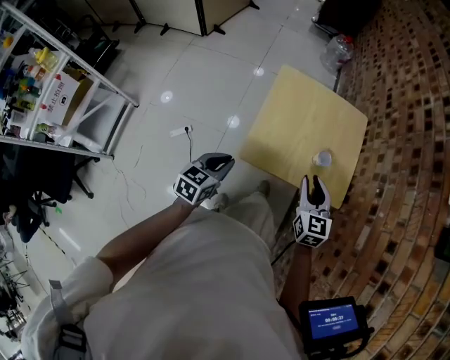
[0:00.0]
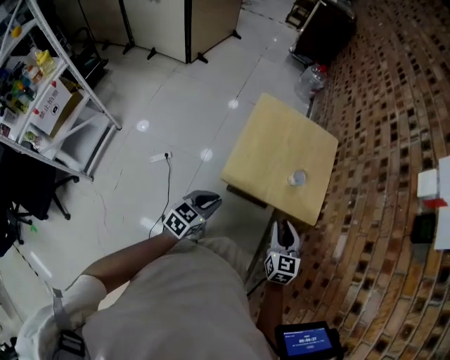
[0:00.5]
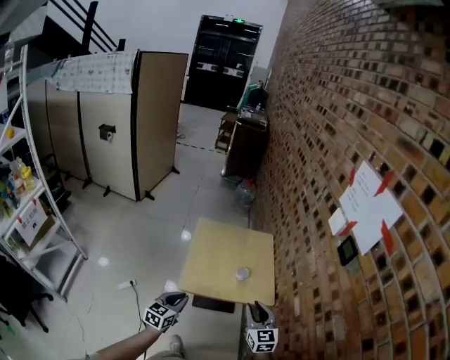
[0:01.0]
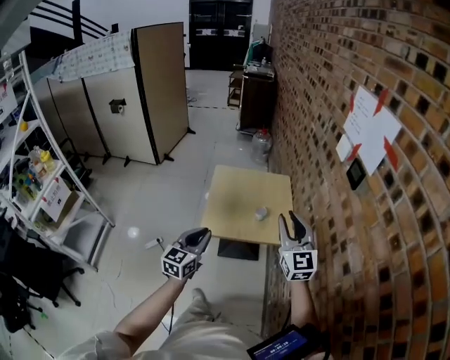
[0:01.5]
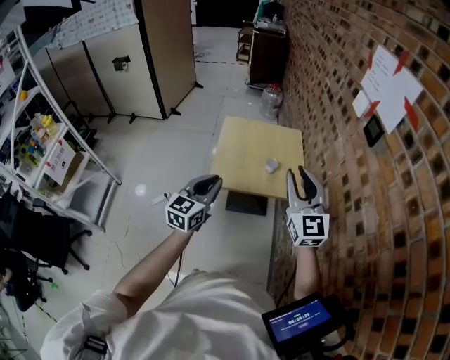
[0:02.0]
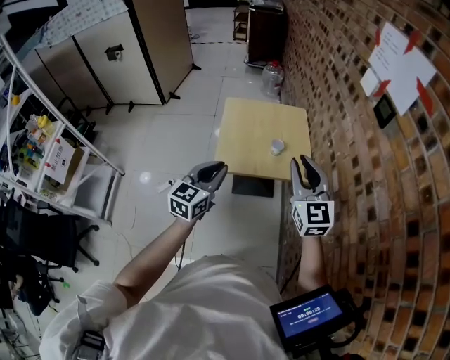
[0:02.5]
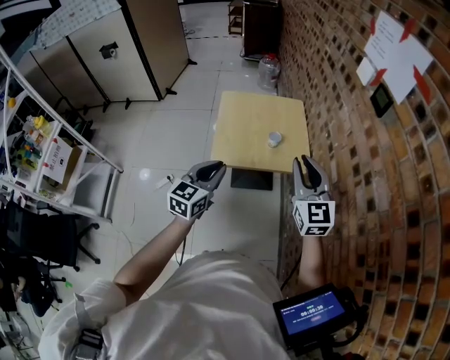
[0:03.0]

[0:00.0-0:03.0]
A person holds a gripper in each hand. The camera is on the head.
0:00.0 to 0:01.5: Both grippers move upward, backward and to the right, some 30 cm. The right gripper changes its angle by some 30 degrees; the left gripper changes its angle by about 30 degrees.
0:01.5 to 0:03.0: The right gripper shifts by approximately 5 cm.

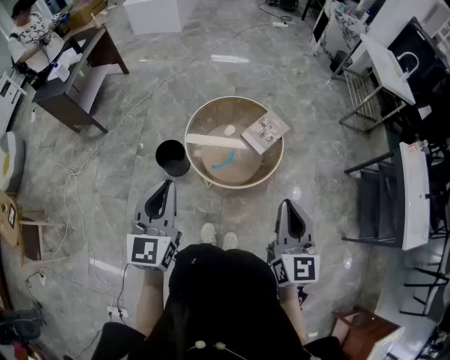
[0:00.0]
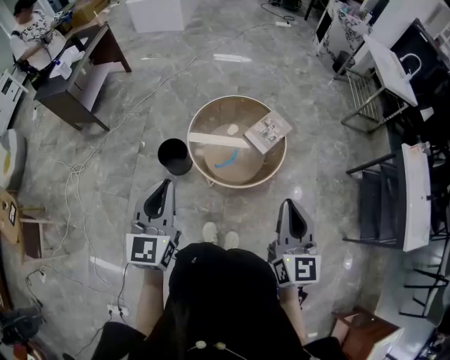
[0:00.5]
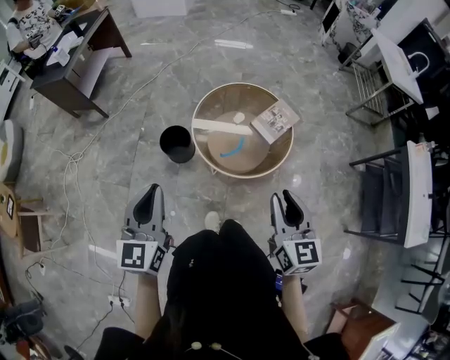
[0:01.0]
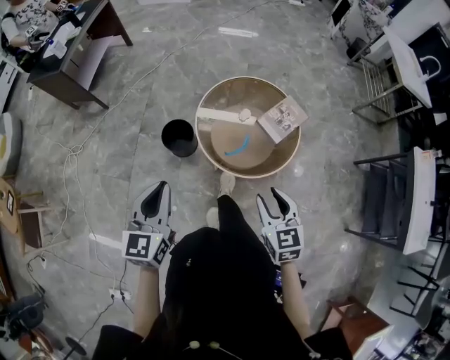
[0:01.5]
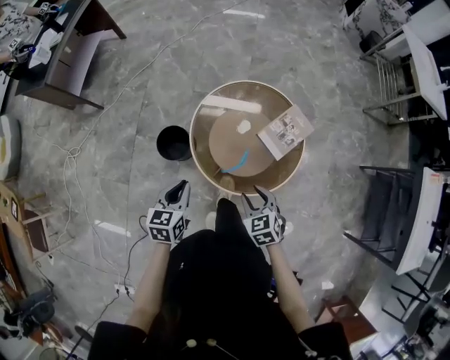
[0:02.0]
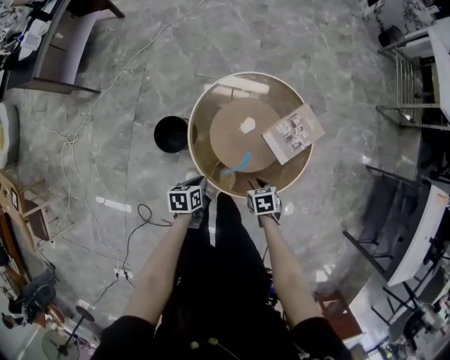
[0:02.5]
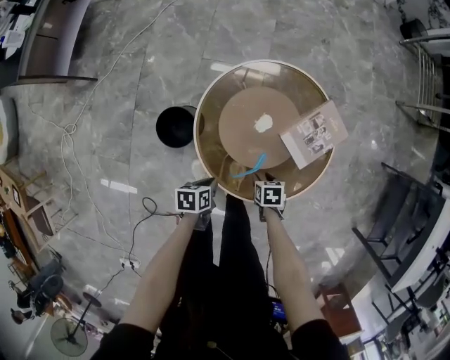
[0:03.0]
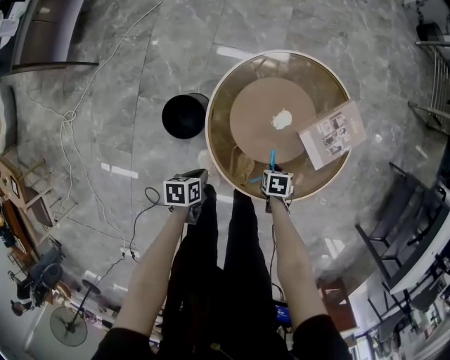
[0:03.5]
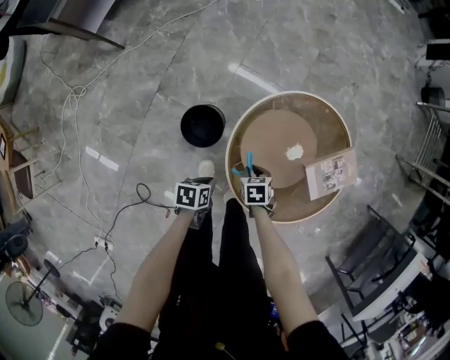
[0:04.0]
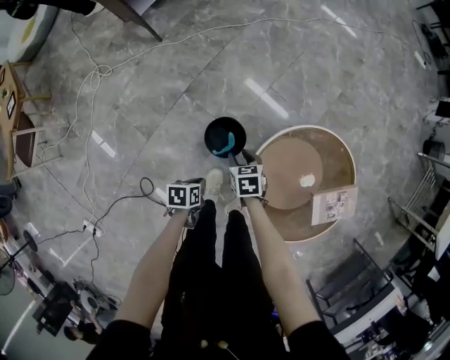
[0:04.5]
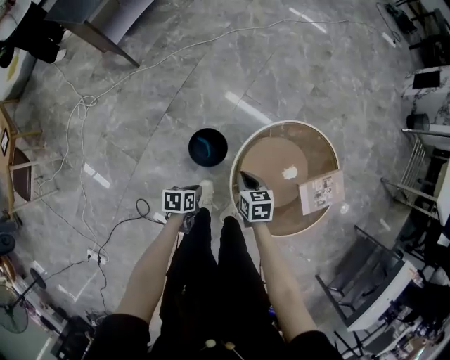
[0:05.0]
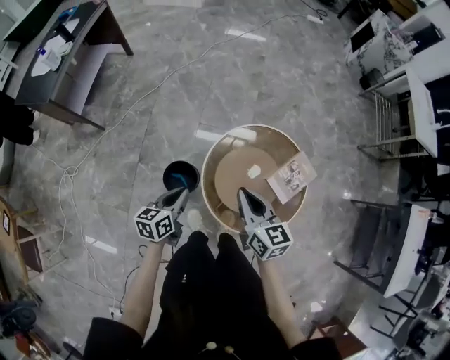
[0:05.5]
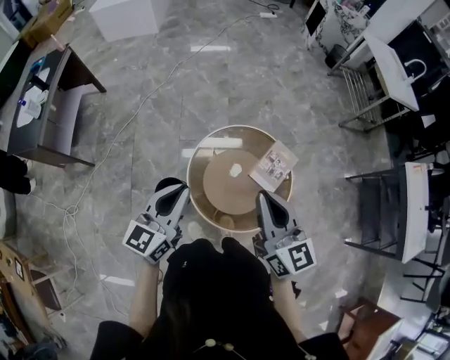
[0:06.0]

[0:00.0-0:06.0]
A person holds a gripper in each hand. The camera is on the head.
0:00.0 to 0:02.0: The two grippers go some 35 cm downward and forward. The right gripper tips its fingers downward by about 40 degrees, and opens up, while the left gripper tilts its fingers some 30 degrees downward.
0:02.0 to 0:04.0: Both grippers move downward, approximately 25 cm. The right gripper turns by roughly 30 degrees, and closes up. The left gripper changes its angle by some 50 degrees.
0:04.0 to 0:06.0: The grippers both shift upward by approximately 50 cm. The right gripper points its fingers approximately 70 degrees further upward, while the left gripper points its fingers about 50 degrees further upward.

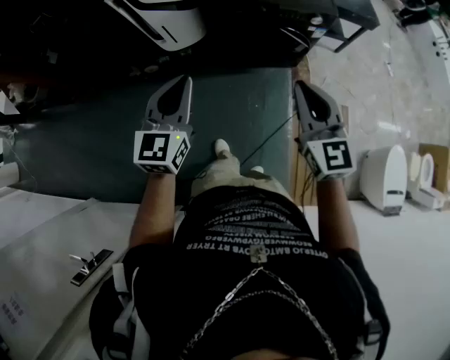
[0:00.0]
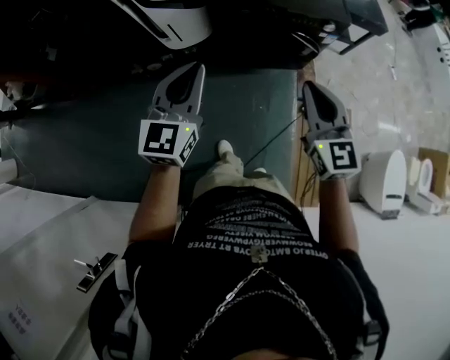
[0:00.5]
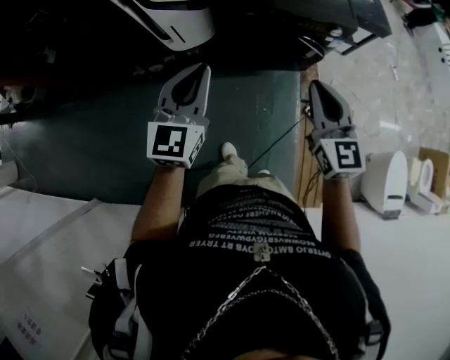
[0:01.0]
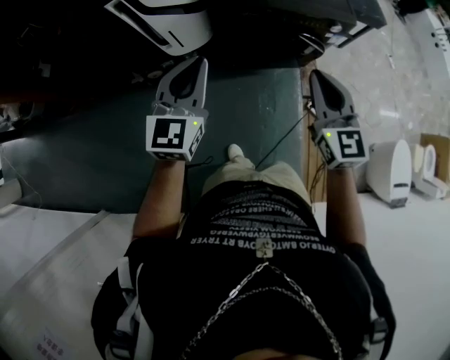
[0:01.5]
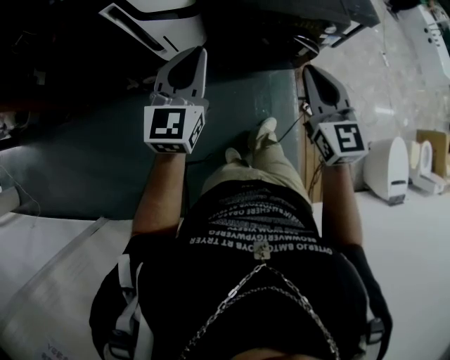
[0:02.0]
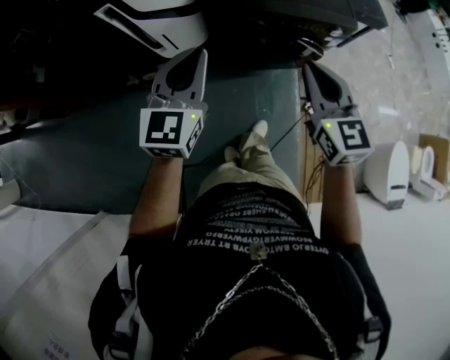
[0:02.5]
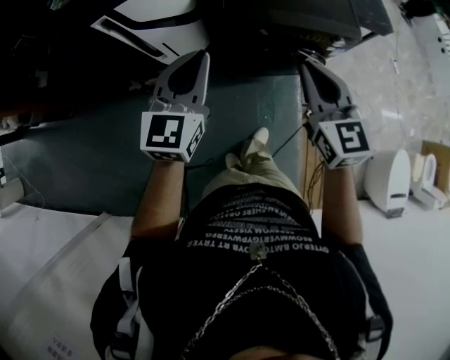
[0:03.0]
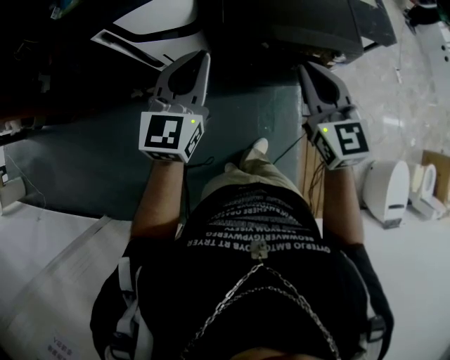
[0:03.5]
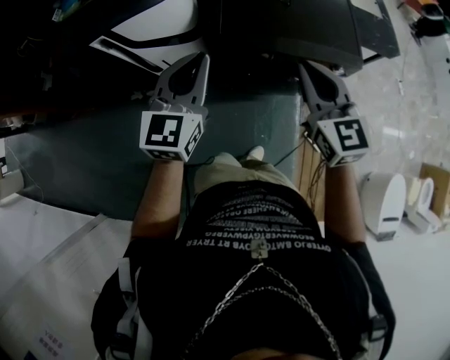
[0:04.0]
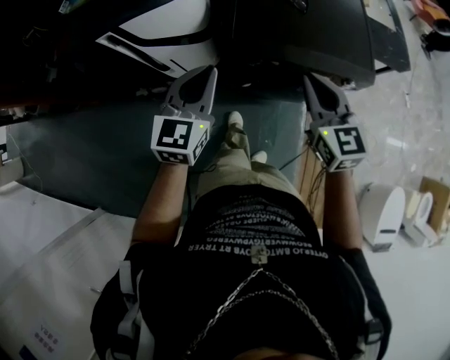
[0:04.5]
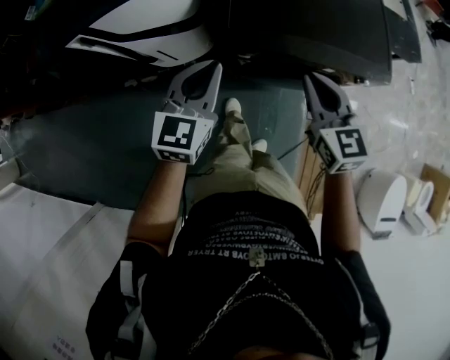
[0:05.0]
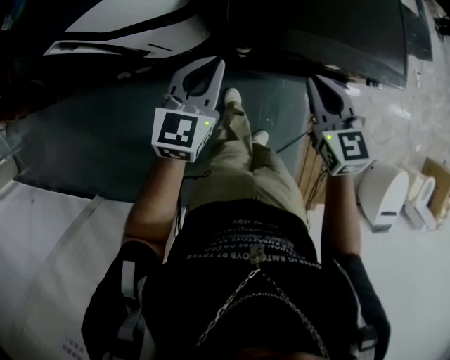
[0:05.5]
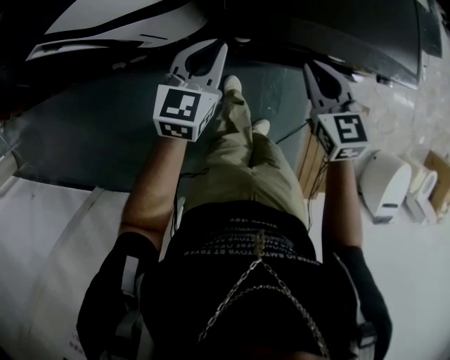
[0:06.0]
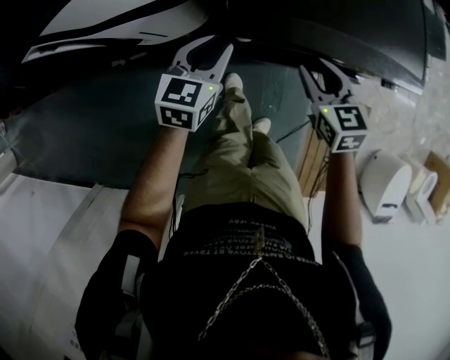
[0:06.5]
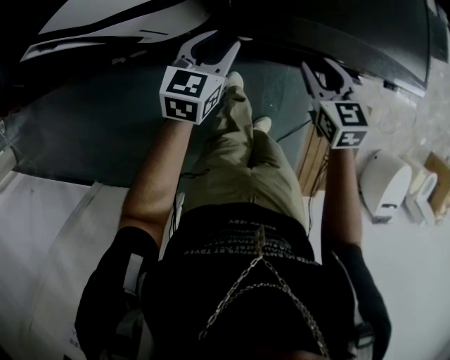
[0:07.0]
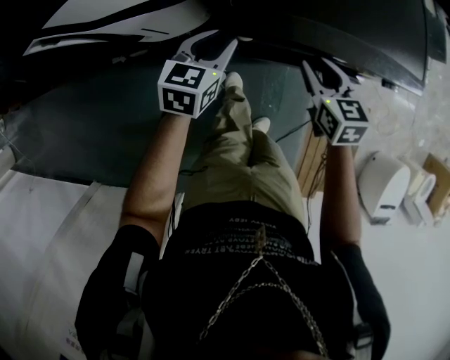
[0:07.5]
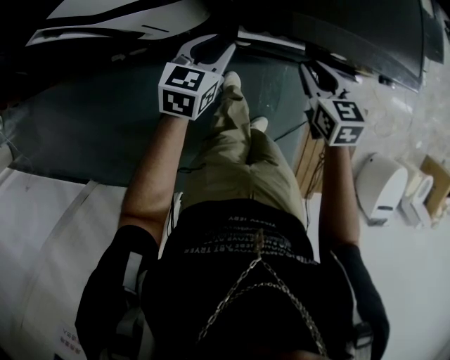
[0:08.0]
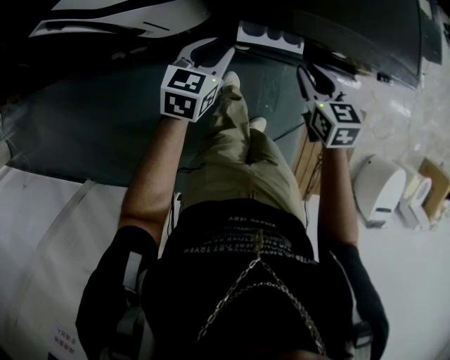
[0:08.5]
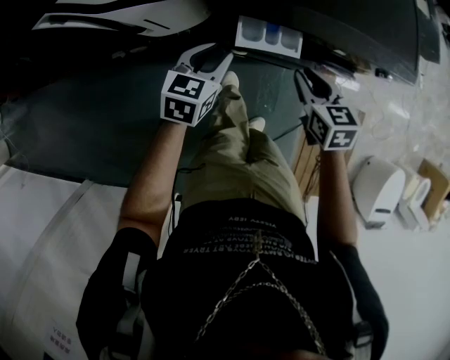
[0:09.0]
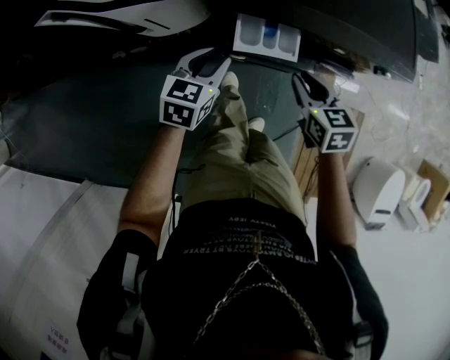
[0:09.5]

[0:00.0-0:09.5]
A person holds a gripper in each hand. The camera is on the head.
0:00.0 to 0:02.0: Both grippers travel together forward and to the left, roughly 20 cm.
0:02.0 to 0:04.0: The left gripper goes about 20 cm forward and to the right. The right gripper heads forward, covering some 25 cm.
0:04.0 to 0:05.5: The two grippers go about 25 cm downward and forward.
0:05.5 to 0:07.5: Both grippers move downward, roughly 15 cm. The right gripper opens its fingers; the left gripper opens its fingers.
0:07.5 to 0:09.5: Both grippers move backward, about 10 cm.

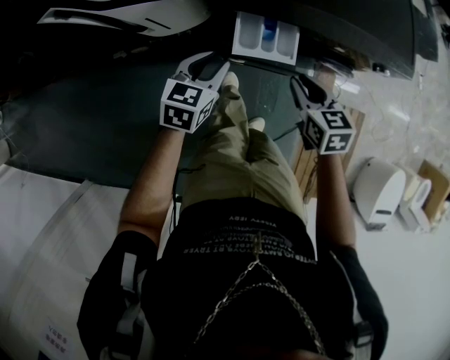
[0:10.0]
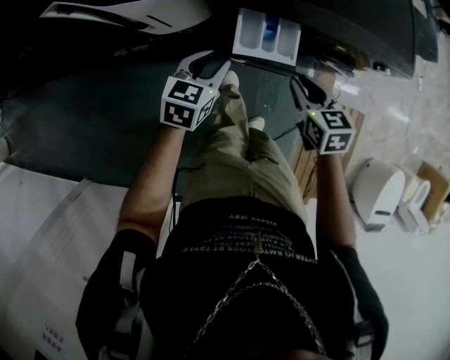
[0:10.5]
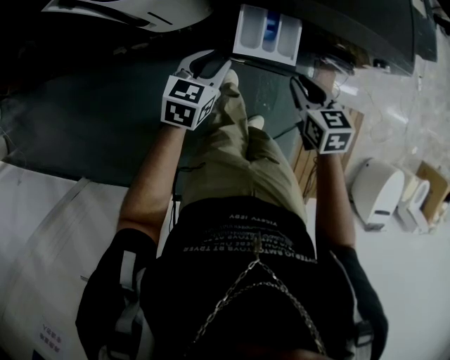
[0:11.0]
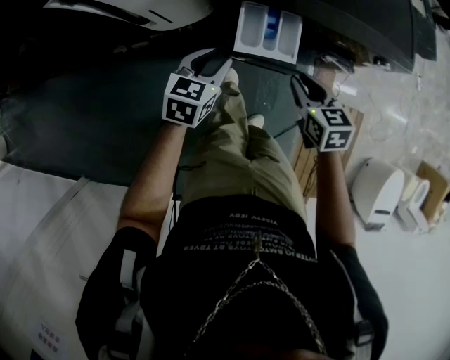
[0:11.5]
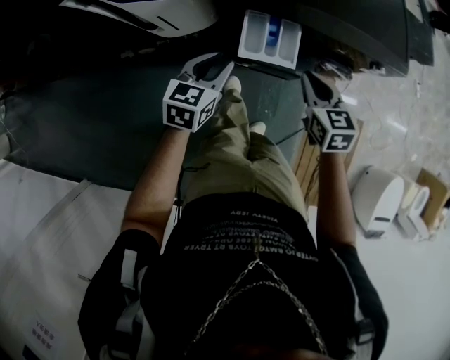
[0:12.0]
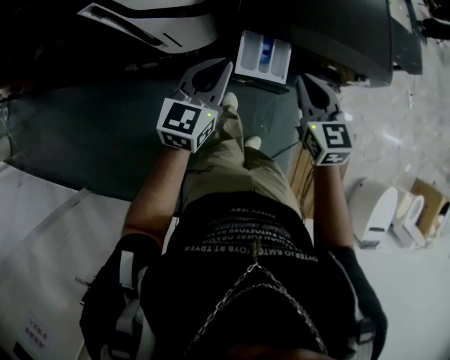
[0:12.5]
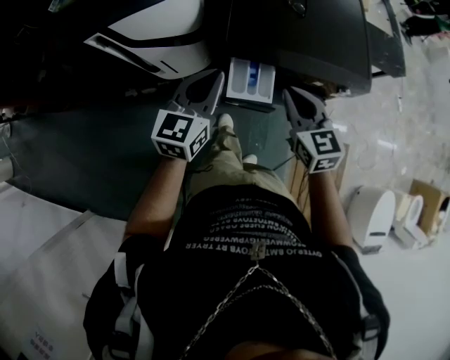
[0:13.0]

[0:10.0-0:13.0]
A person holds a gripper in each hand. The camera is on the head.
0:10.0 to 0:11.5: There are only small adjustments of the grippers.
0:11.5 to 0:13.0: Both grippers travel together upward, about 25 cm. The left gripper rotates about 20 degrees, and closes. Meanwhile the right gripper turns by about 20 degrees.

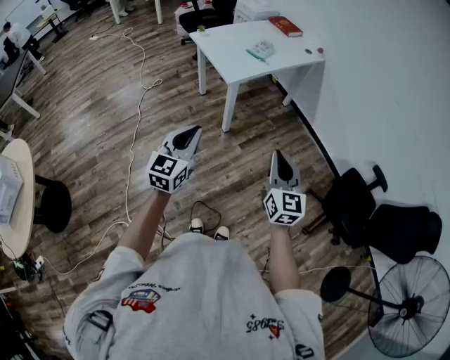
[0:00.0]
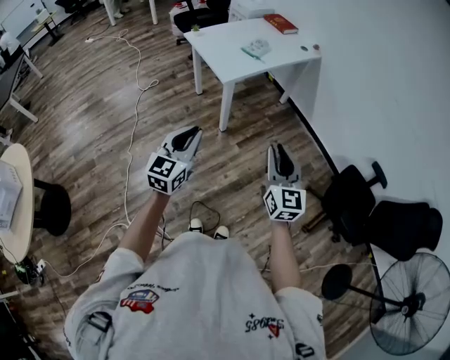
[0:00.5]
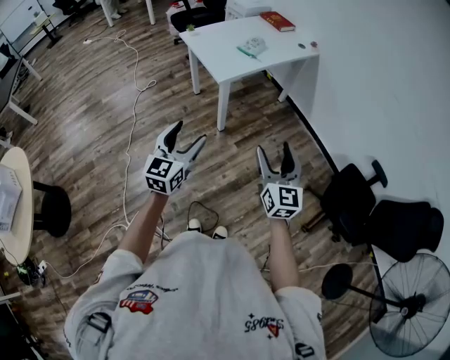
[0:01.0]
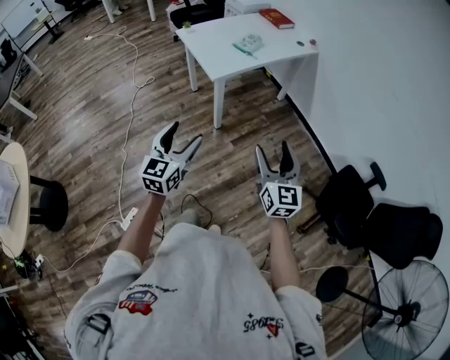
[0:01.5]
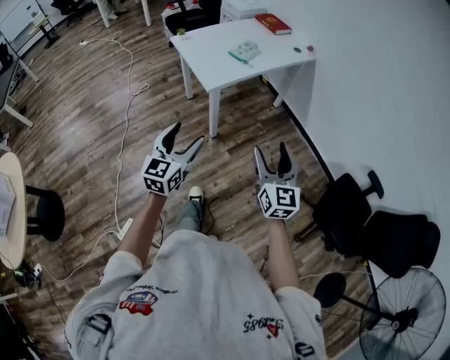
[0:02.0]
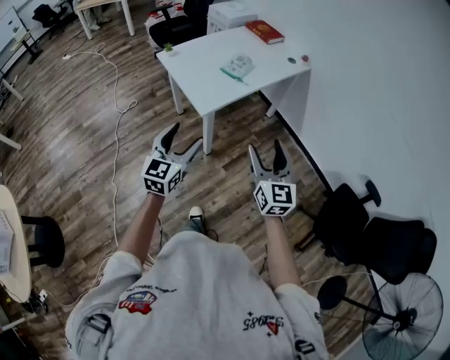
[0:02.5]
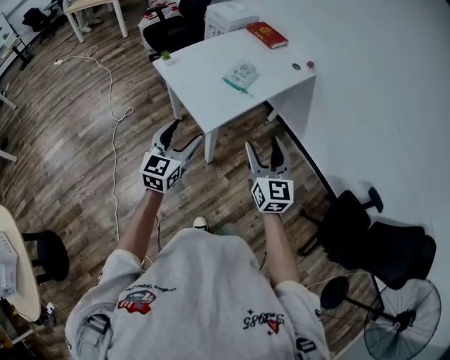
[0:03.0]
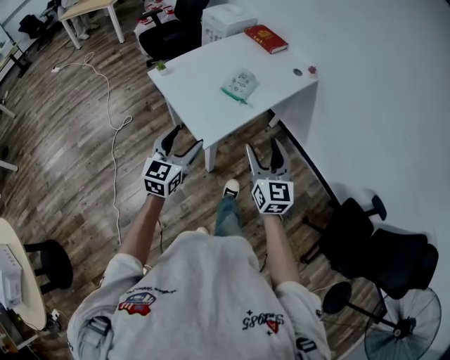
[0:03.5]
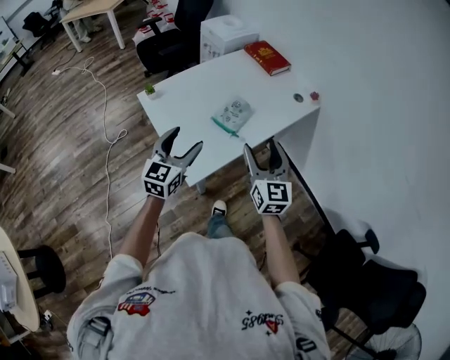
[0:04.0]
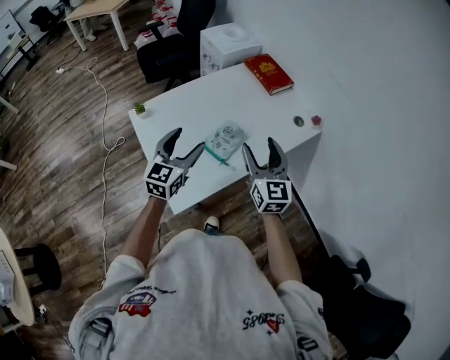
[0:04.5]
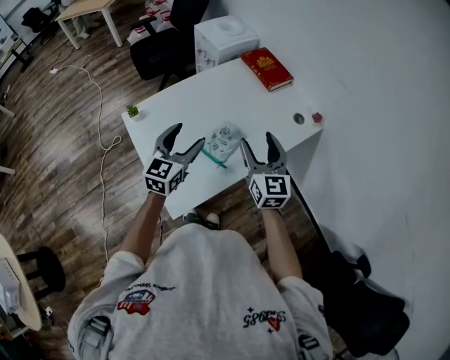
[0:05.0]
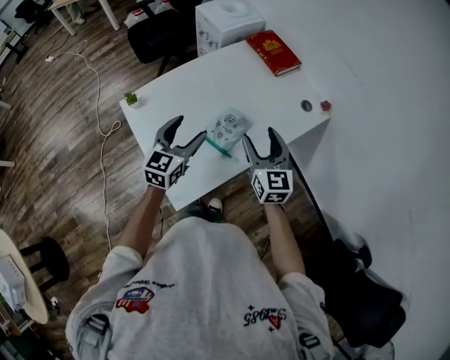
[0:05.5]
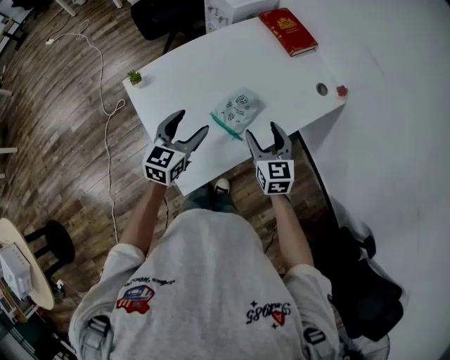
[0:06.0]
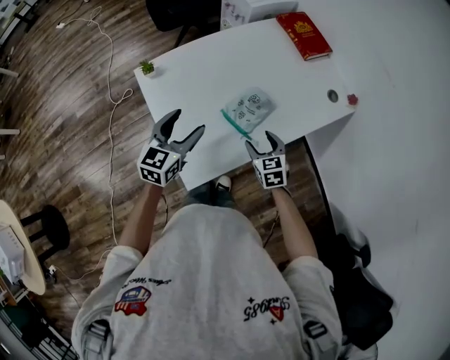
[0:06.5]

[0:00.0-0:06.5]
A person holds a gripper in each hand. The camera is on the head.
0:00.0 to 0:02.0: Both grippers travel together forward and to the right, roughly 15 cm. The left gripper opens up; the right gripper opens up.
0:02.0 to 0:04.5: The pair of grippers is taken forward, about 70 cm.
0:04.5 to 0:06.5: The left gripper is displaced downward and to the left by roughly 10 cm, while the right gripper is displaced downward by roughly 25 cm, and points its fingers roughly 40 degrees further downward.
